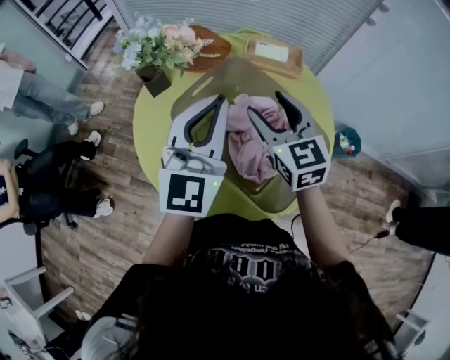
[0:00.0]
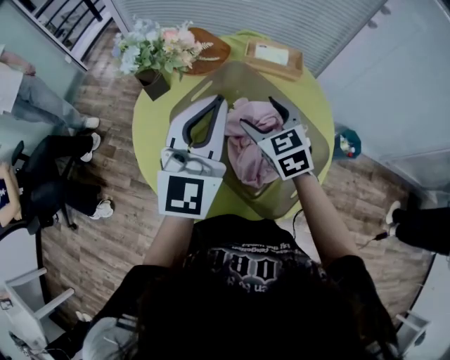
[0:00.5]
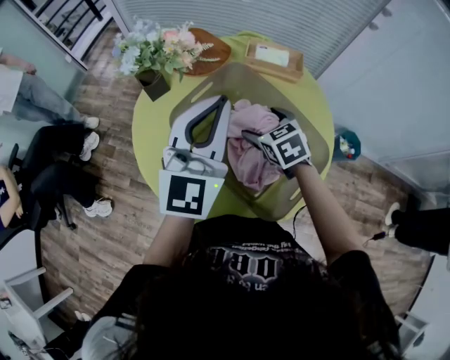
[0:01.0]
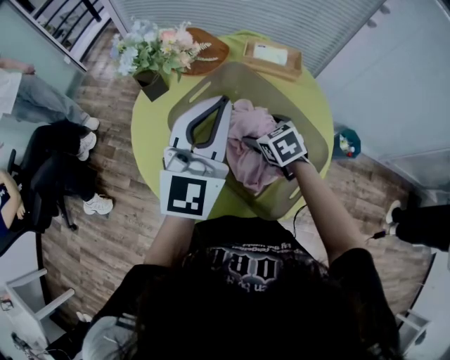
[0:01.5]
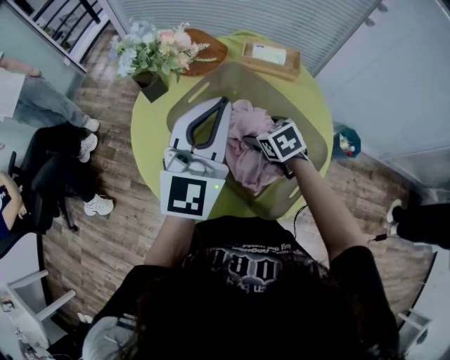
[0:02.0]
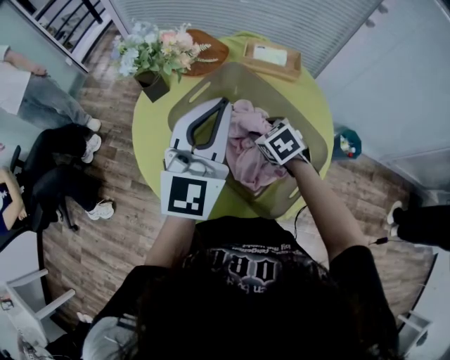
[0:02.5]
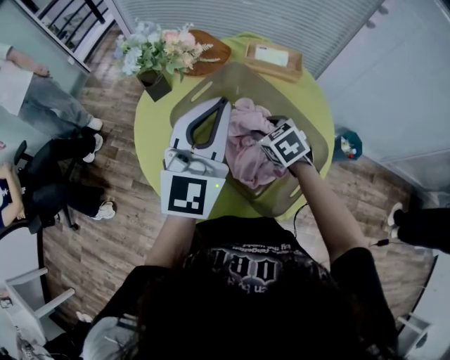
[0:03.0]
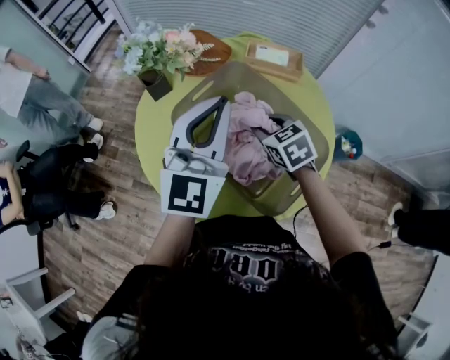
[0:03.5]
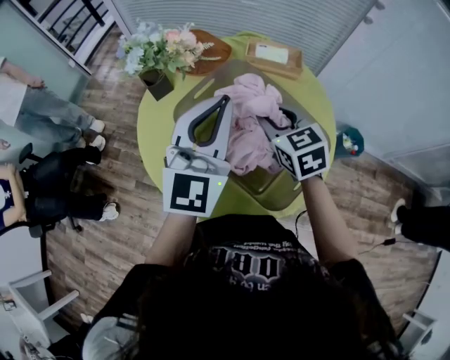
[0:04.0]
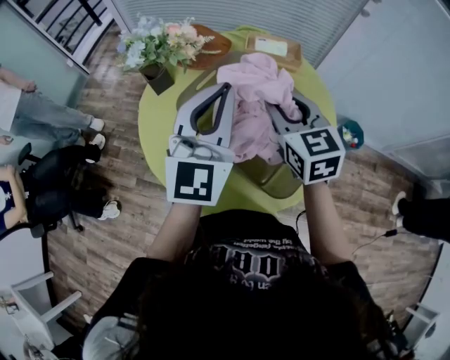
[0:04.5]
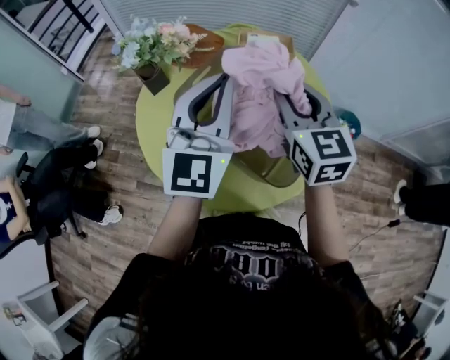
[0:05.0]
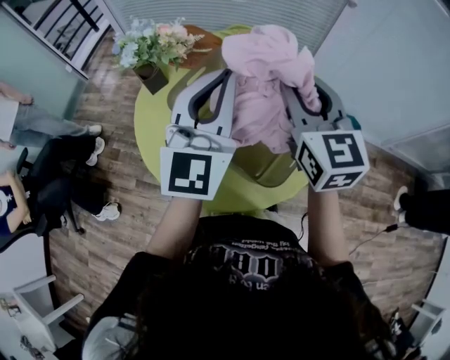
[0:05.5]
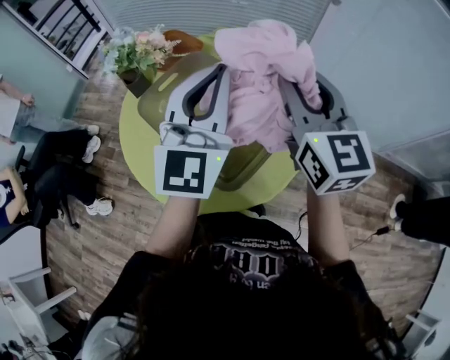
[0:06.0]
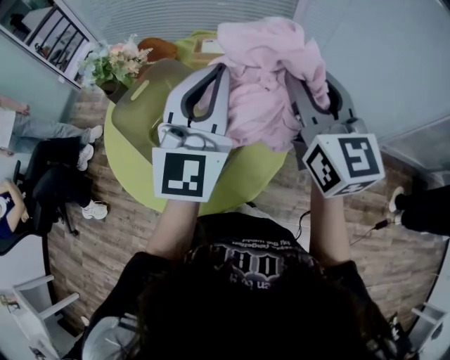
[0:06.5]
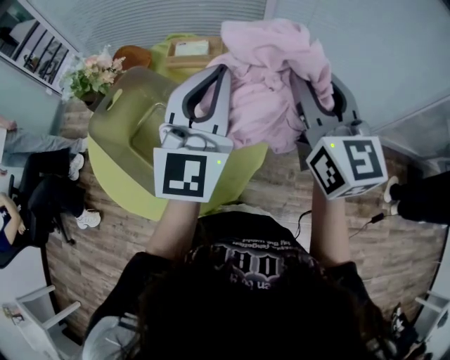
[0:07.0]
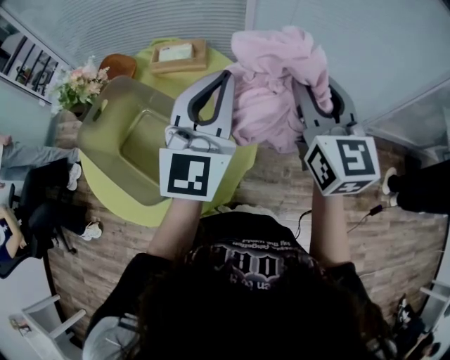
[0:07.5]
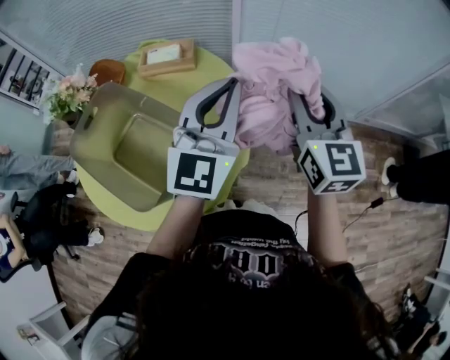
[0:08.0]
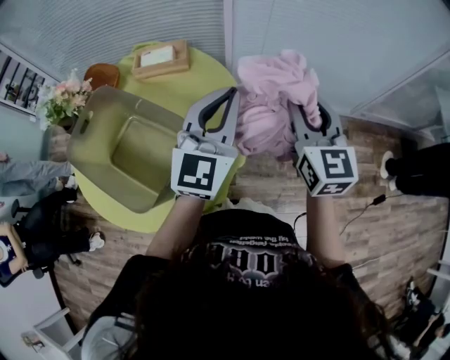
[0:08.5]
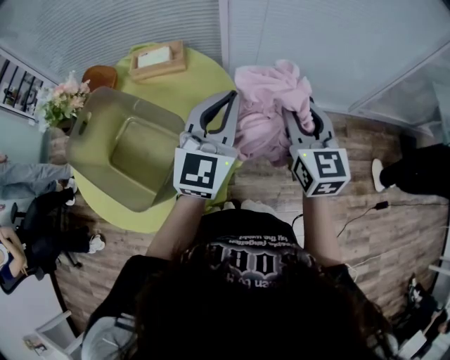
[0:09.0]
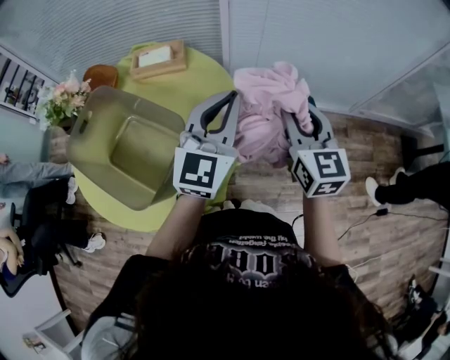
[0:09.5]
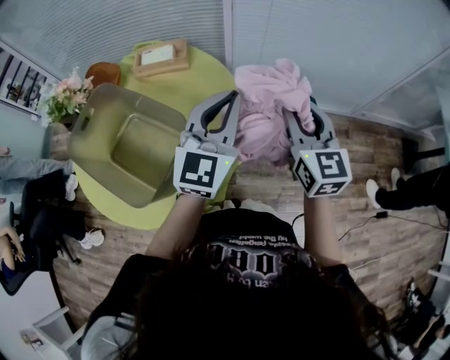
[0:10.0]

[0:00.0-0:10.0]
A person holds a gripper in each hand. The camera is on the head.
0:00.0 to 0:02.0: The right gripper shifts approximately 20 cm downward, and points its fingers approximately 40 degrees further downward.
0:02.0 to 0:04.0: The right gripper goes about 15 cm upward, swivels roughly 30 degrees, and closes up.
0:04.0 to 0:06.0: The right gripper moves upward and to the right, approximately 25 cm, and tips its fingers upward by roughly 30 degrees, while the left gripper travels to the right and upward by approximately 10 cm.
0:06.0 to 0:08.0: The grippers both shift to the right by approximately 25 cm.
0:08.0 to 0:10.0: The two grippers go approximately 5 cm downward.

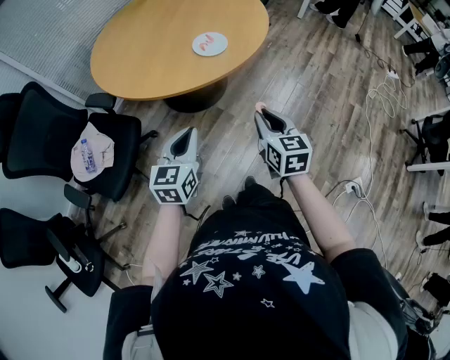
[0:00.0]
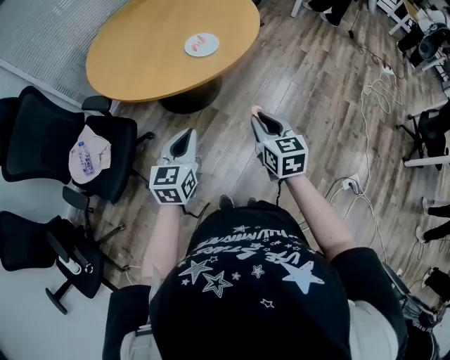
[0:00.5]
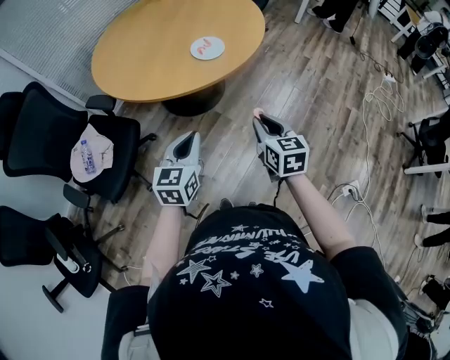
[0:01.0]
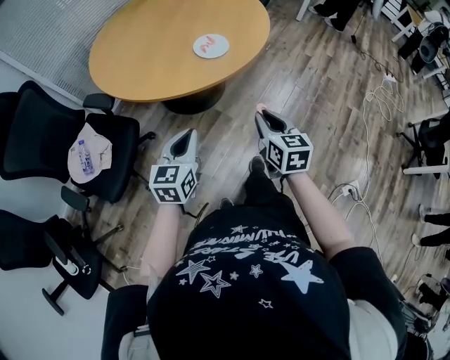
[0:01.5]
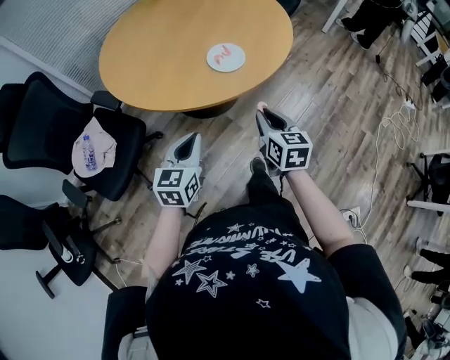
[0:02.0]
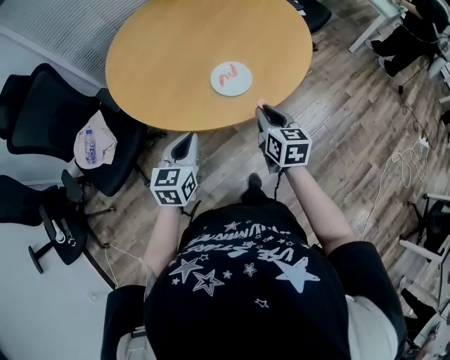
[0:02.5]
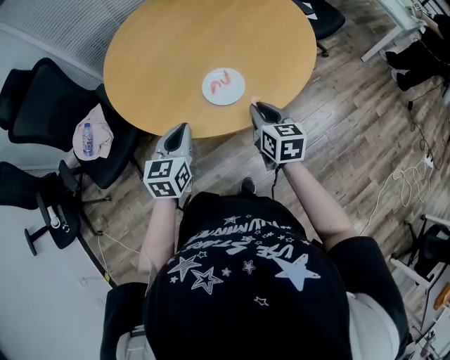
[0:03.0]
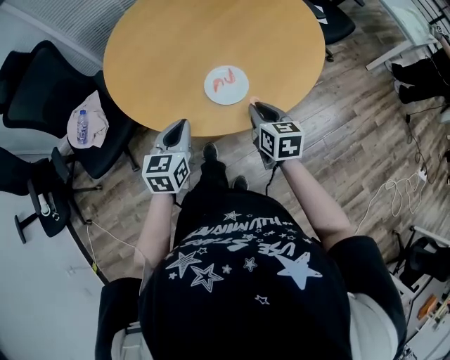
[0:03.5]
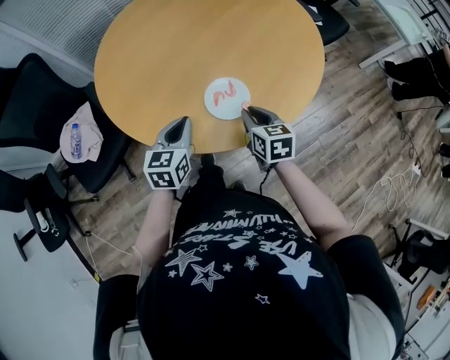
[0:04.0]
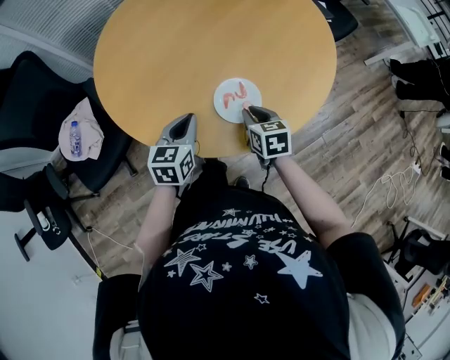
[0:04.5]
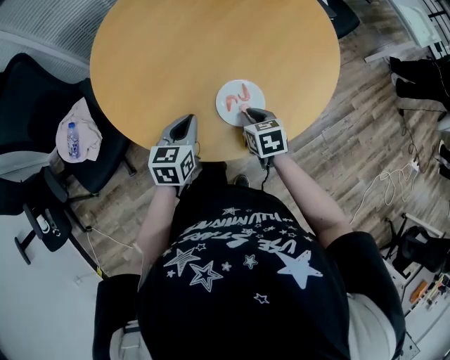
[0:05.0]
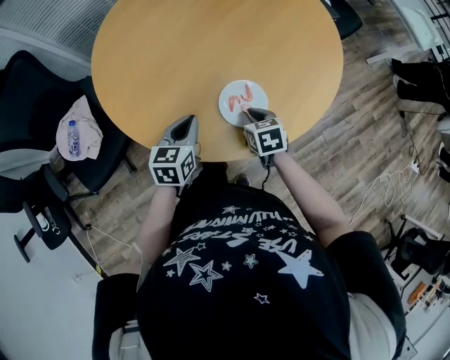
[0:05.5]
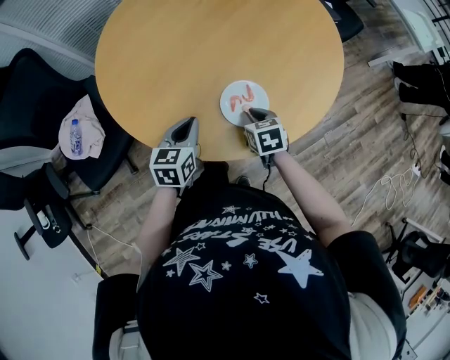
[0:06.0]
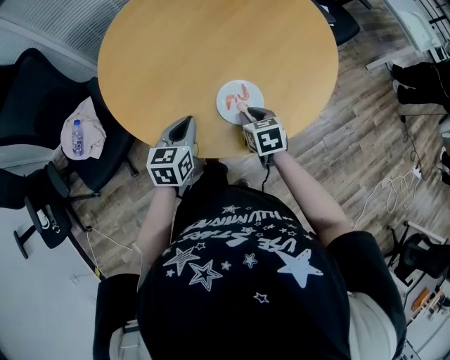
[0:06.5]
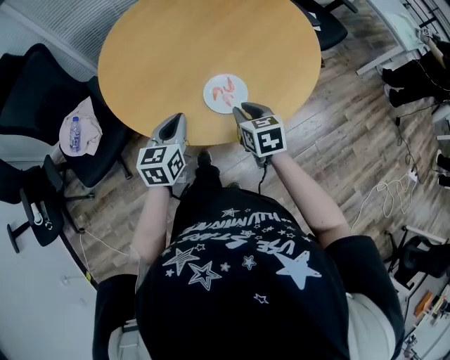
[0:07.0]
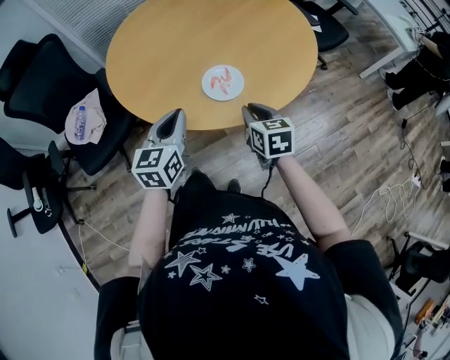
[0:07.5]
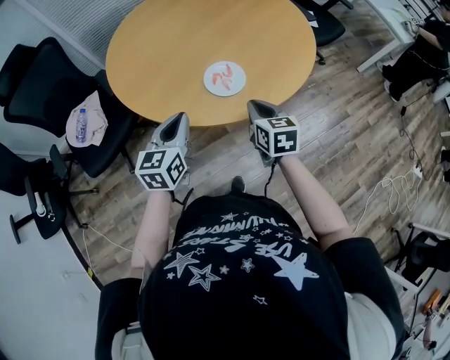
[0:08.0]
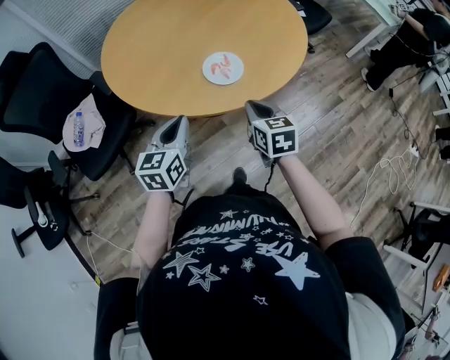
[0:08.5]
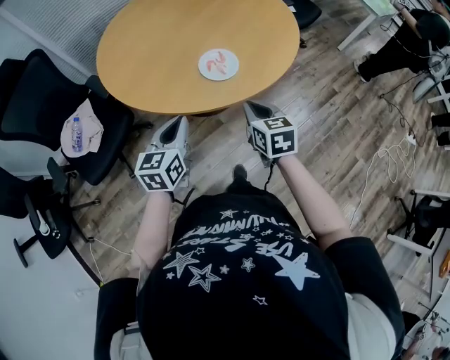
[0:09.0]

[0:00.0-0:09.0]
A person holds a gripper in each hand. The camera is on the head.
0:00.0 to 0:02.0: The right gripper moves forward, some 15 cm. The left gripper shifts about 10 cm forward.
0:02.0 to 0:04.5: The left gripper is displaced forward by approximately 25 cm. Meanwhile the right gripper heads forward and downward, covering some 30 cm, and rotates some 30 degrees.
0:04.5 to 0:07.0: The left gripper is displaced backward by approximately 5 cm; the right gripper shifts some 5 cm upward.
0:07.0 to 0:09.0: The two grippers go roughly 15 cm backward. The right gripper closes its fingers.

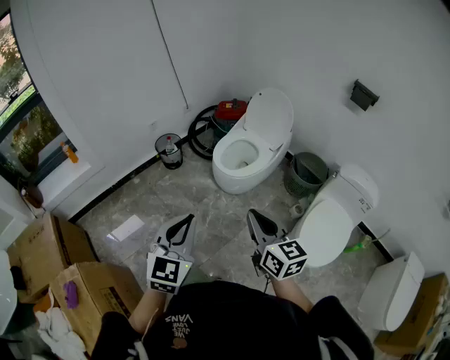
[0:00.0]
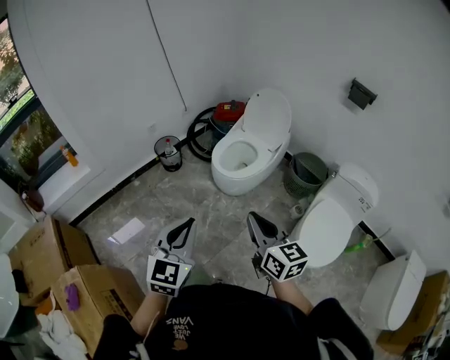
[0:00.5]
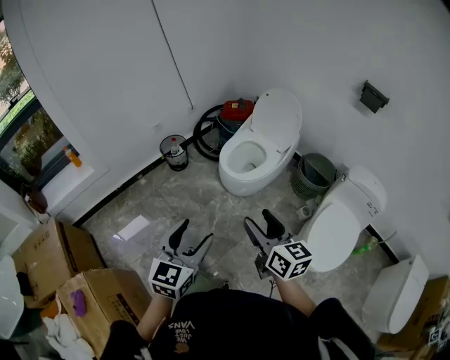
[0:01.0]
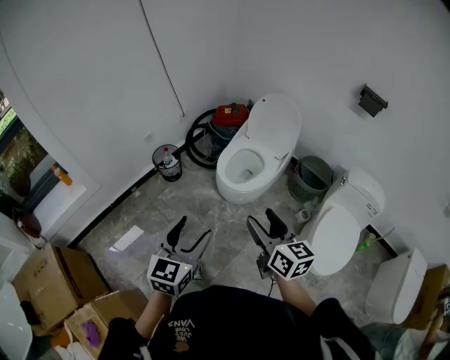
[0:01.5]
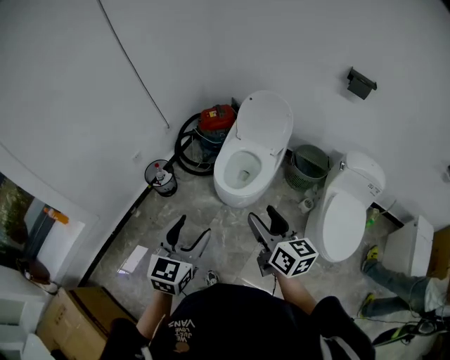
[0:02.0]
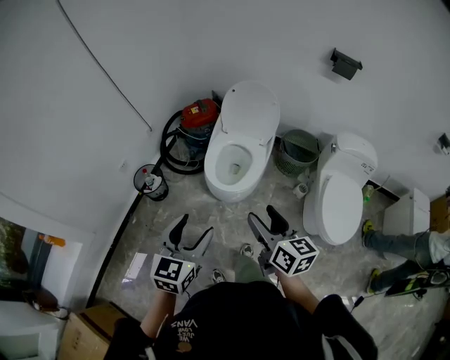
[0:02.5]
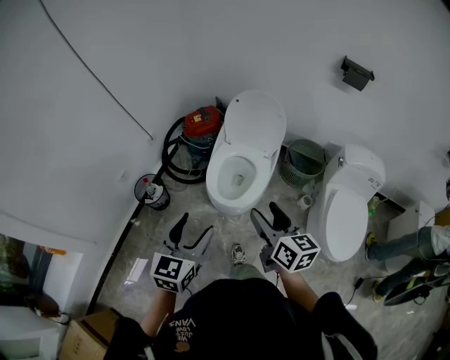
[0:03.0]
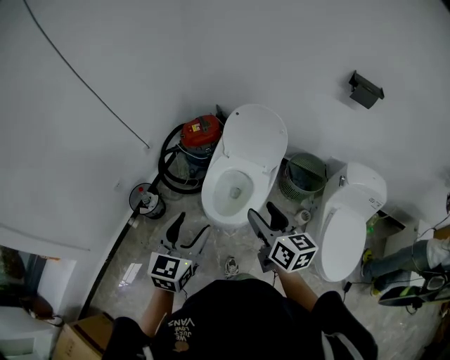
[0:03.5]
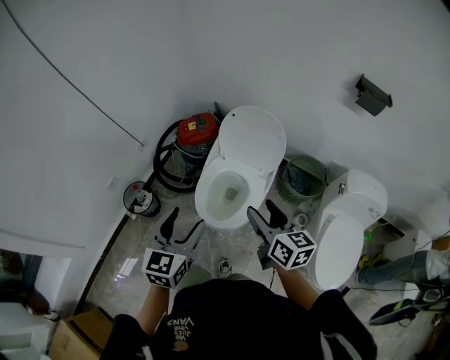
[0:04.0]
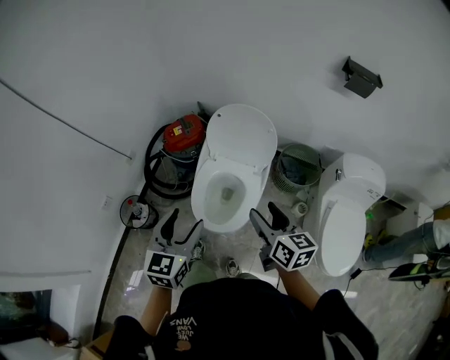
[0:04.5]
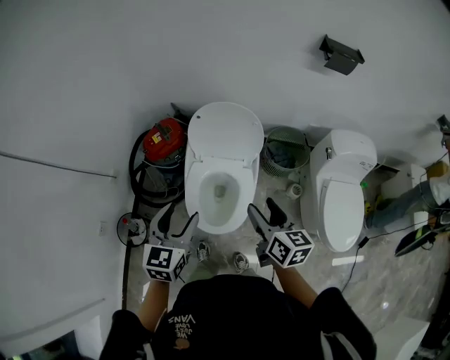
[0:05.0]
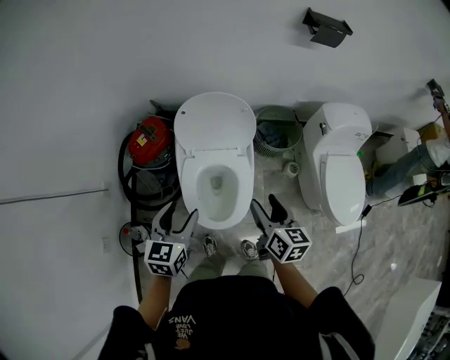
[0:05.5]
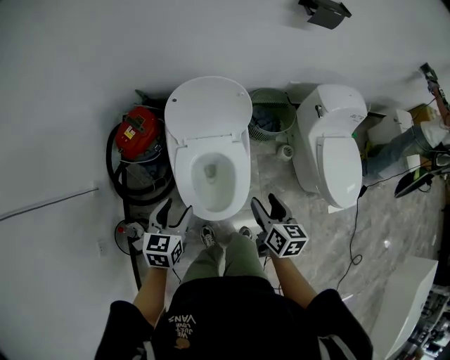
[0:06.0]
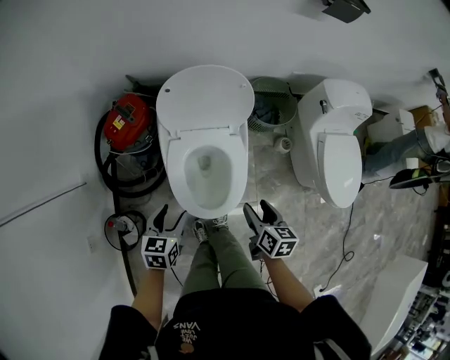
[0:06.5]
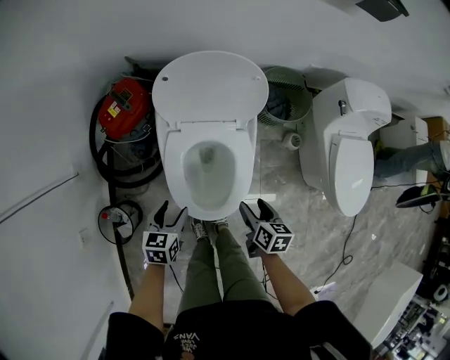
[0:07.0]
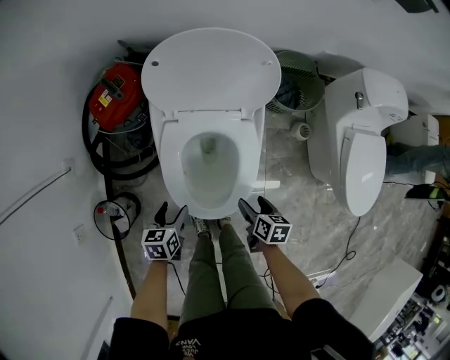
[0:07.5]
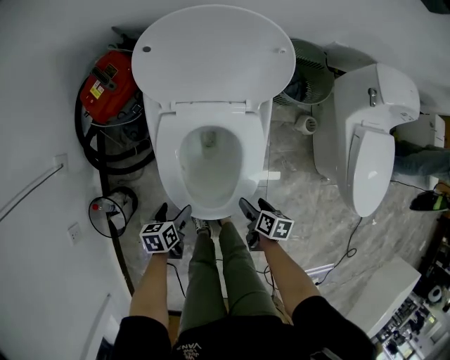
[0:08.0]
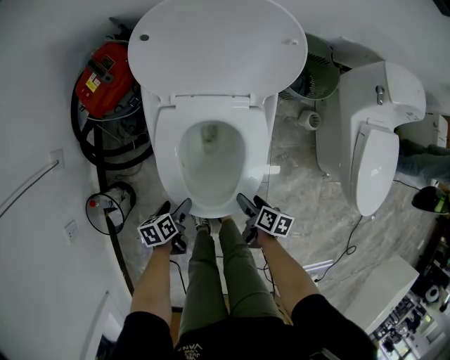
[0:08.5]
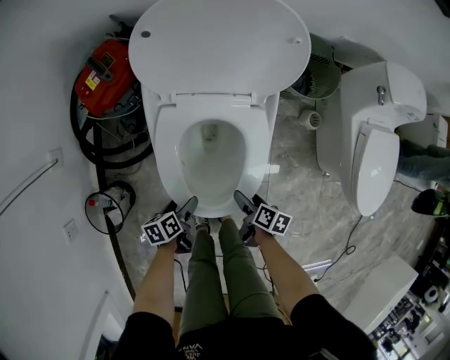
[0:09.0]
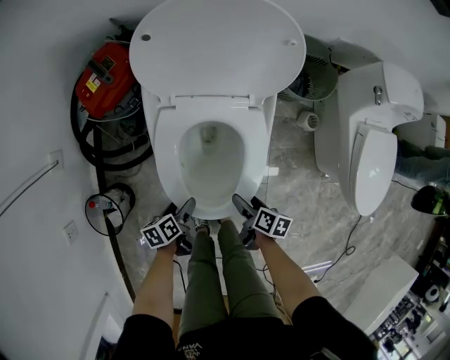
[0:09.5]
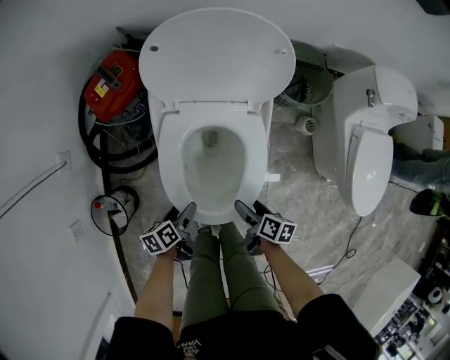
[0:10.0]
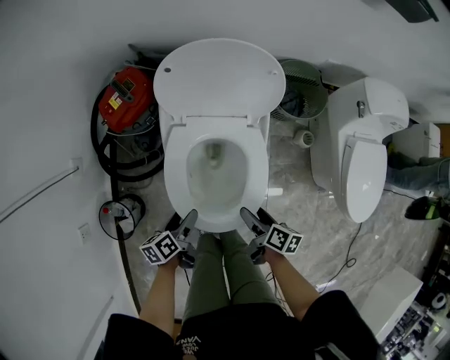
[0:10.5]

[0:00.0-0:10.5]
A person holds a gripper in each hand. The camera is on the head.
0:00.0 to 0:02.0: Both grippers travel together forward and to the left, approximately 25 cm. The left gripper changes its angle by roughly 20 degrees, and opens up, while the right gripper rotates roughly 20 degrees, and opens its fingers.
0:02.0 to 0:04.0: The two grippers go roughly 30 cm forward.
0:04.0 to 0:06.5: The grippers both shift downward by approximately 25 cm. The left gripper turns by about 40 degrees. Meanwhile the right gripper swivels roughly 50 degrees.
0:06.5 to 0:08.5: The grippers both shift downward by about 30 cm. The left gripper twists roughly 40 degrees counterclockwise, seen from behind; the right gripper changes its angle by approximately 30 degrees.
0:08.5 to 0:10.5: The two grippers go some 15 cm upward.
